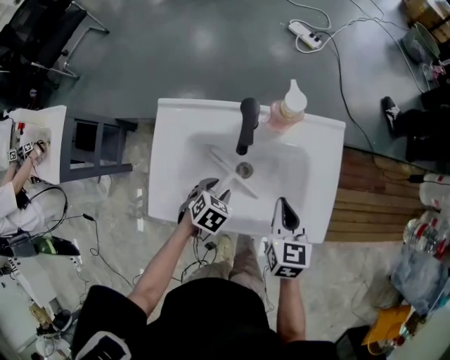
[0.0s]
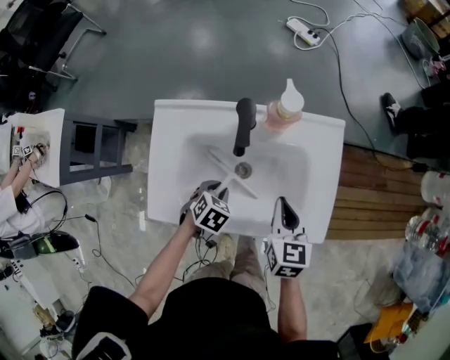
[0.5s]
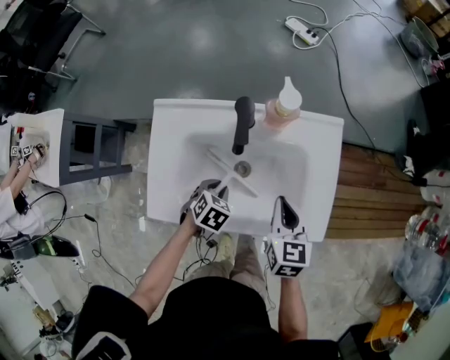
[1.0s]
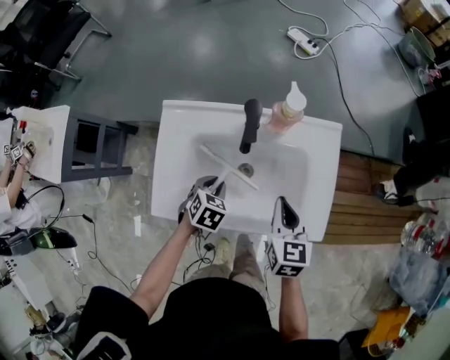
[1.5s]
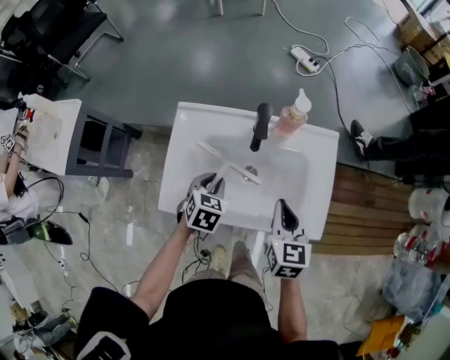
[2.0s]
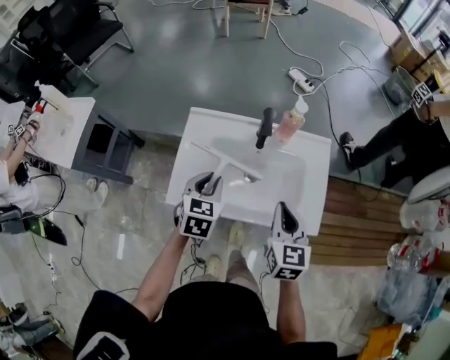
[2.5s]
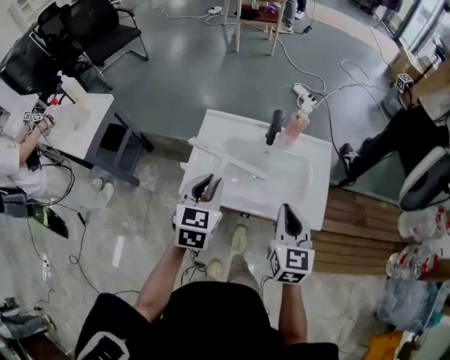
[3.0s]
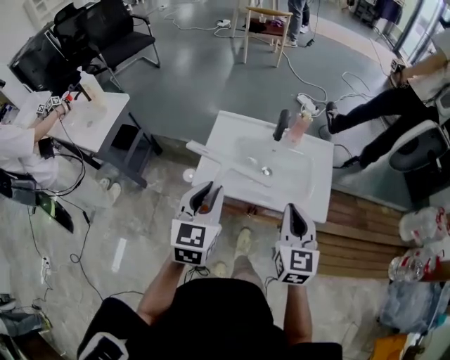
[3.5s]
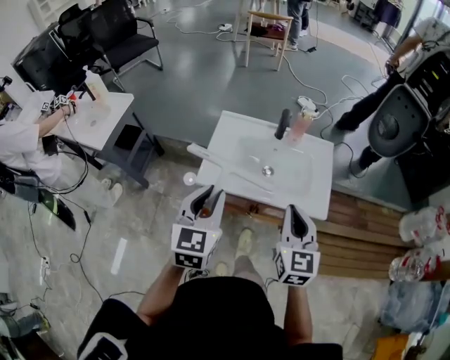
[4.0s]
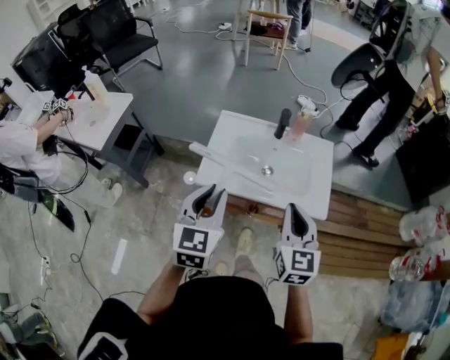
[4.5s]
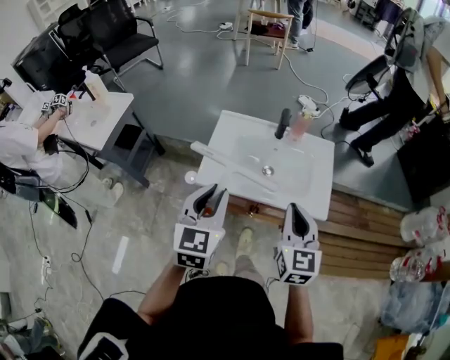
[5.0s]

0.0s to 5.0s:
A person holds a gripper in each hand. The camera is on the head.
0.0s to 2.5s: The left gripper moves upward, about 20 cm, changes its angle by about 40 degrees, and closes up; the right gripper shifts some 15 cm upward and backward.
2.5s to 5.0s: The two grippers go about 25 cm backward and upward. The left gripper changes its angle by roughly 20 degrees.

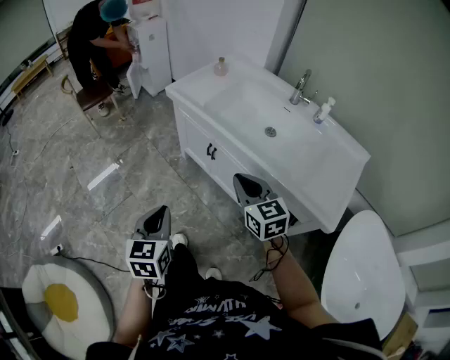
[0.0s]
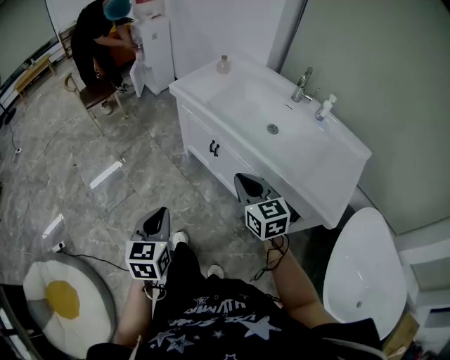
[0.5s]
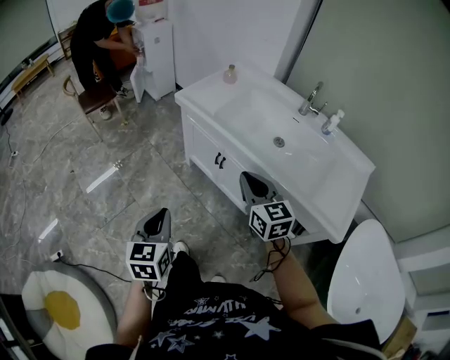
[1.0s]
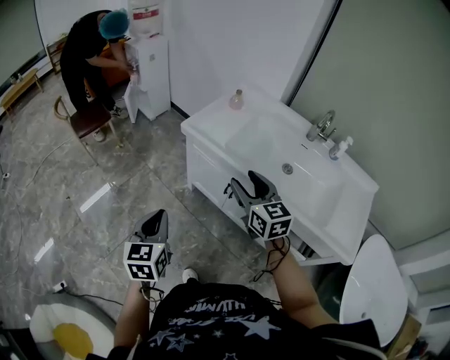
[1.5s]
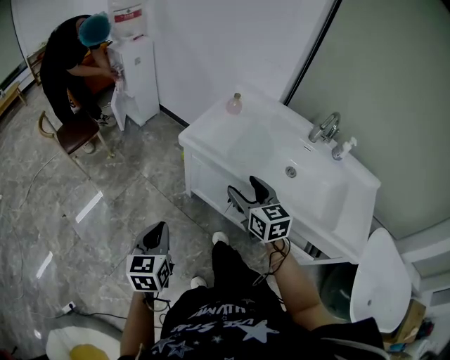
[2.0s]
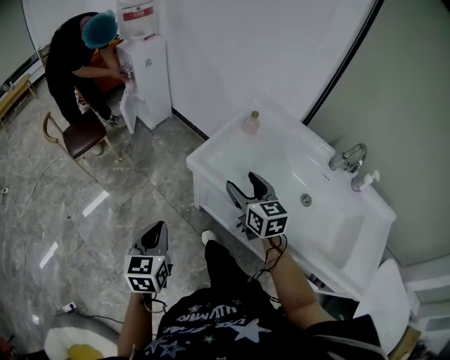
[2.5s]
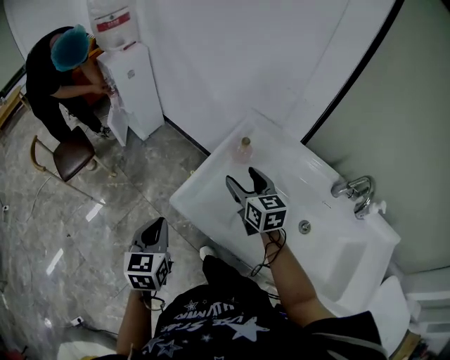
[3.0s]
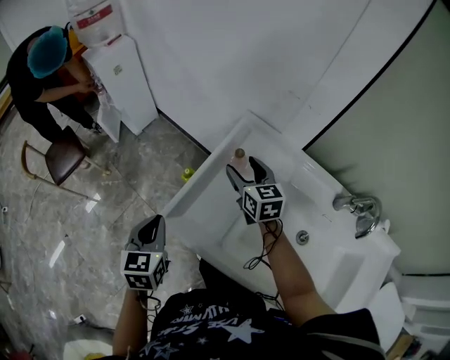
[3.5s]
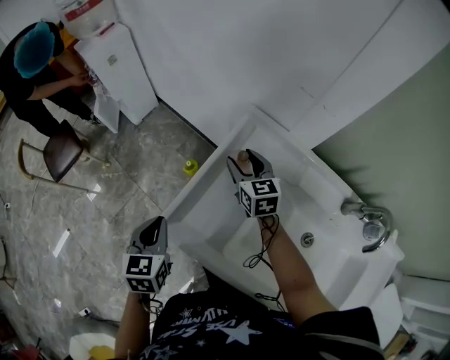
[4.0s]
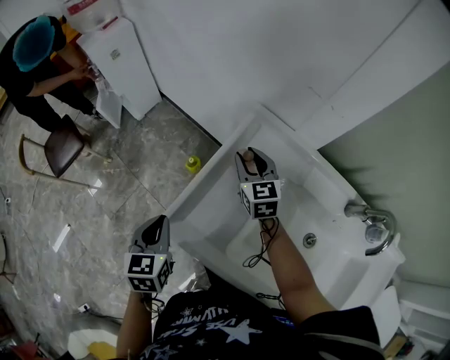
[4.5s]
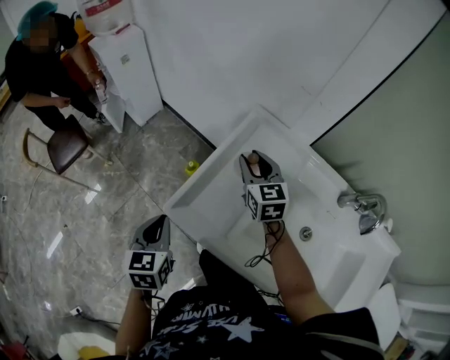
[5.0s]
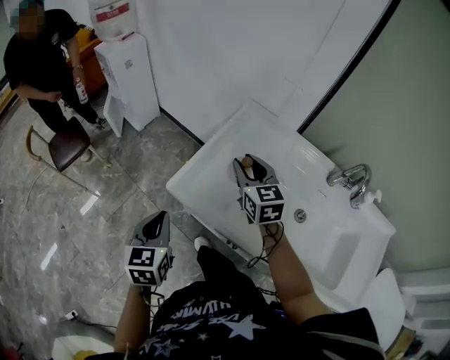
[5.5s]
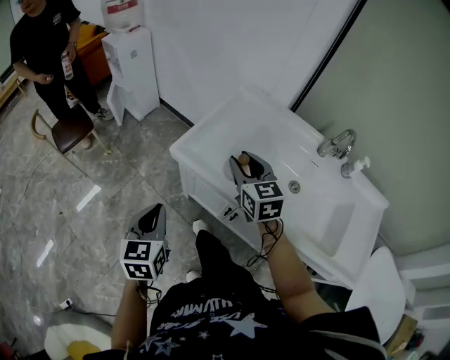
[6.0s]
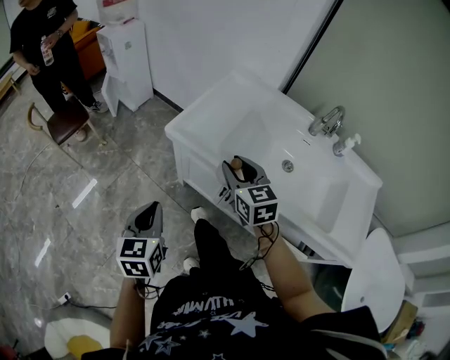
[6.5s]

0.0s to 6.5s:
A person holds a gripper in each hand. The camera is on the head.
0.0s to 2.0s: The grippers both shift forward and to the left by roughly 30 cm. The right gripper opens its fingers.
2.0s to 4.5s: The pair of grippers is taken forward, about 50 cm. The right gripper closes up.
4.5s to 6.5s: The grippers both shift backward by approximately 40 cm.

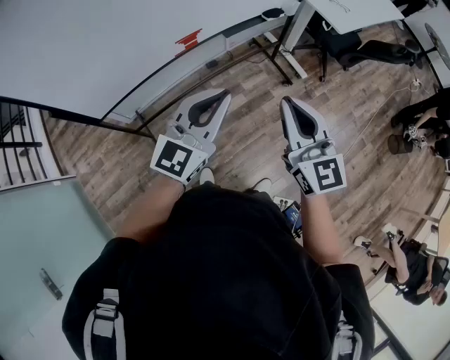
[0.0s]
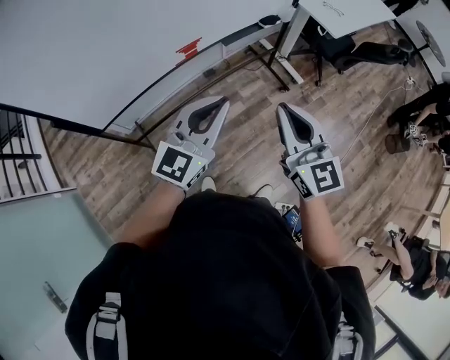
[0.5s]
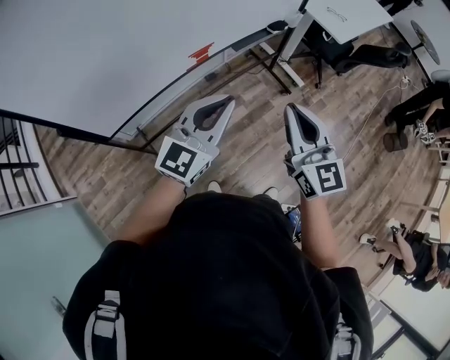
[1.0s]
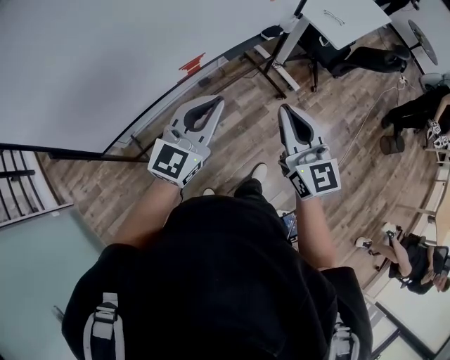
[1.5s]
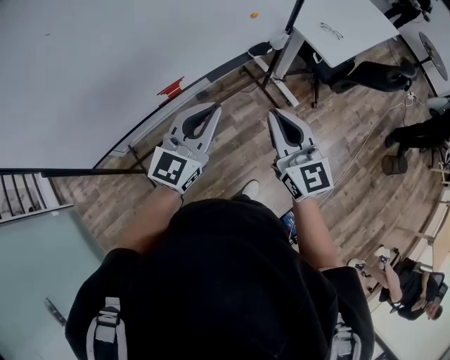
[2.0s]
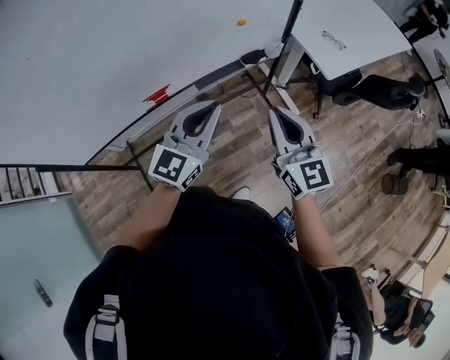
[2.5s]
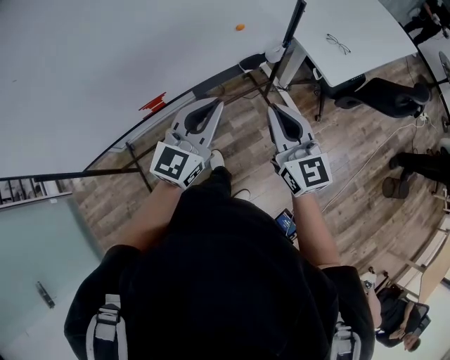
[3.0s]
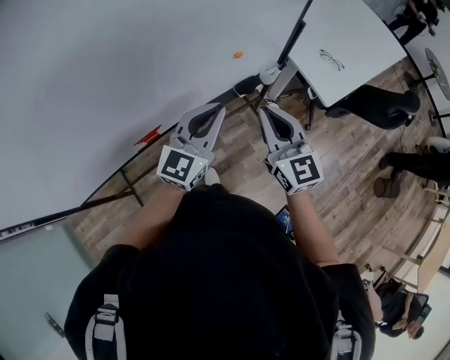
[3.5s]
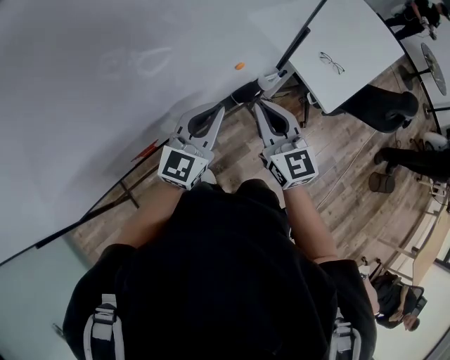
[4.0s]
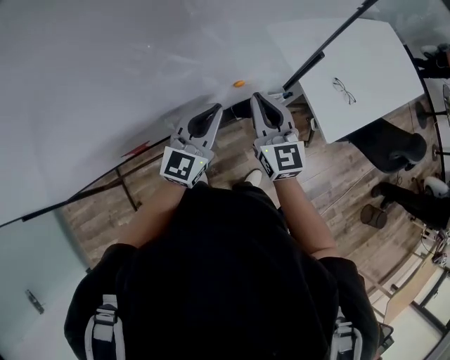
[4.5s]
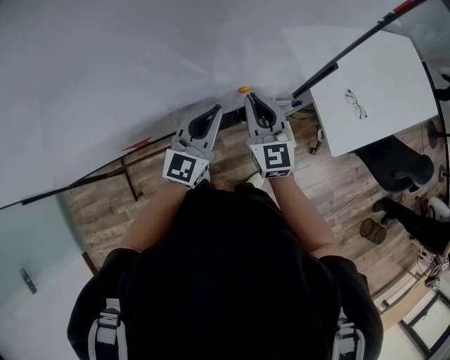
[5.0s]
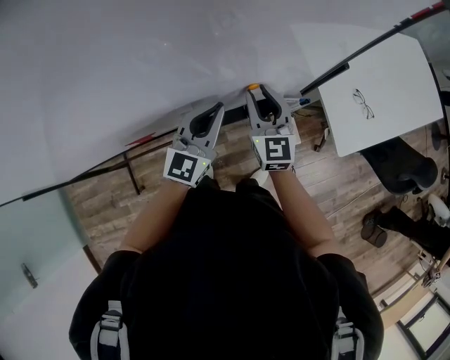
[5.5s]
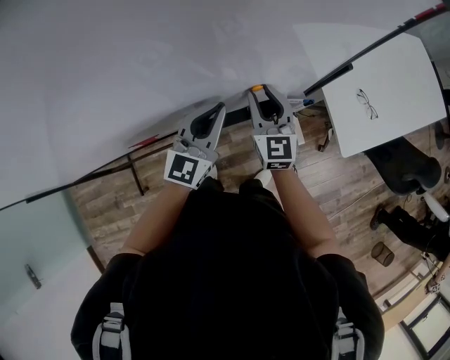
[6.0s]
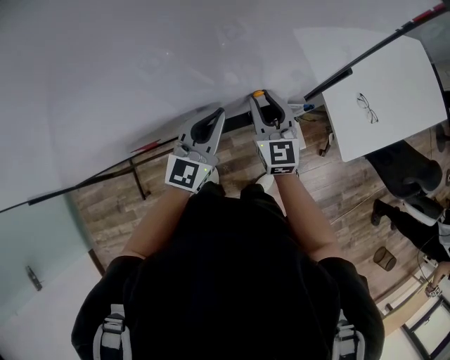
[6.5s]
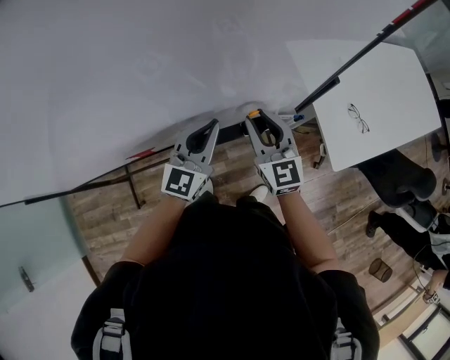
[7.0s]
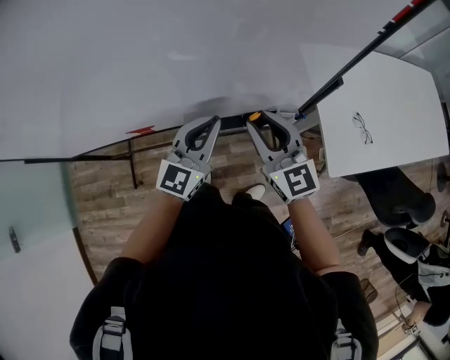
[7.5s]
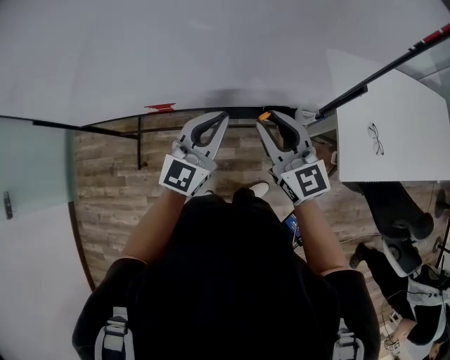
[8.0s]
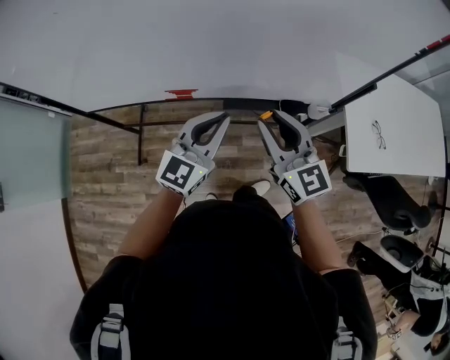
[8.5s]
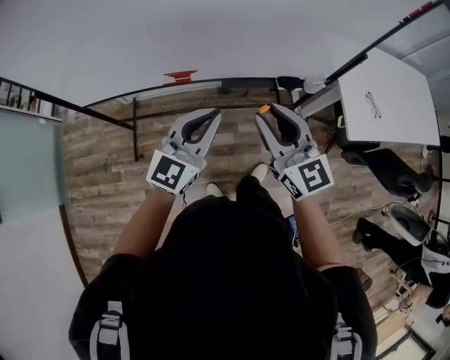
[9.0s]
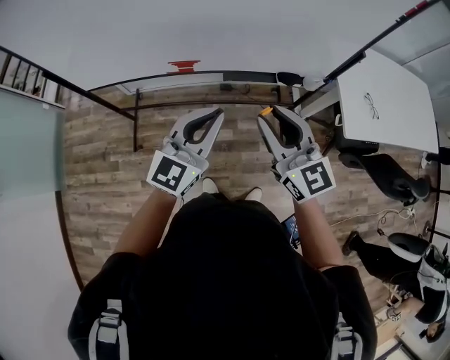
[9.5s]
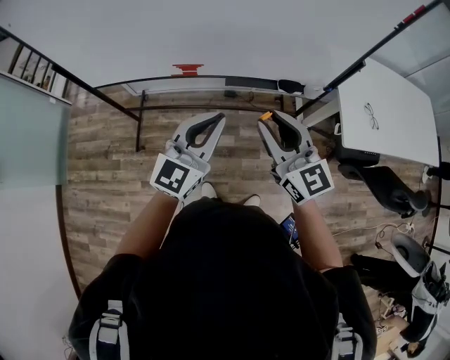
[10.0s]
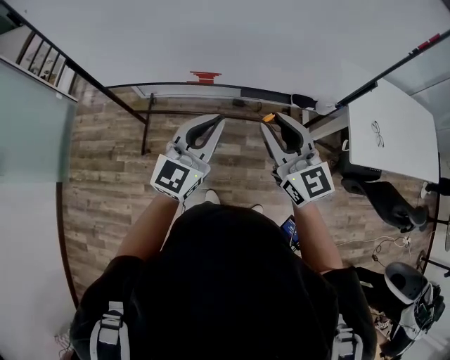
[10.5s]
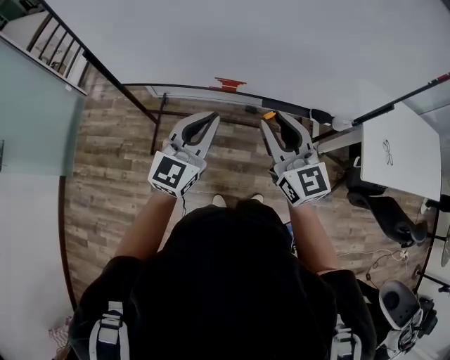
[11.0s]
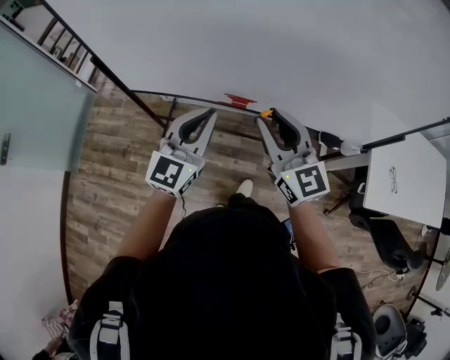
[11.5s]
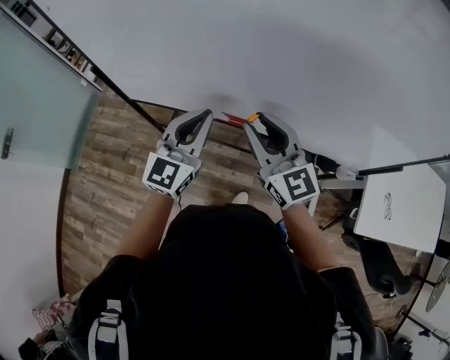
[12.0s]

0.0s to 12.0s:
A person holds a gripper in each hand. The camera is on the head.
0.0s to 2.0s: The two grippers go roughly 20 cm forward.
2.0s to 4.0s: The two grippers go some 30 cm forward.
4.0s to 6.0s: The right gripper moves forward and downward, roughly 15 cm, and opens its fingers. The left gripper is displaced forward by about 10 cm, and rotates approximately 20 degrees.
6.0s to 8.0s: The left gripper goes roughly 10 cm backward. Meanwhile the right gripper goes roughly 15 cm backward and upward, and turns by roughly 30 degrees.
8.0s to 10.0s: Both grippers travel together backward and to the left, about 25 cm.
10.0s to 12.0s: The two grippers go about 30 cm forward and to the left. The left gripper rotates approximately 20 degrees.

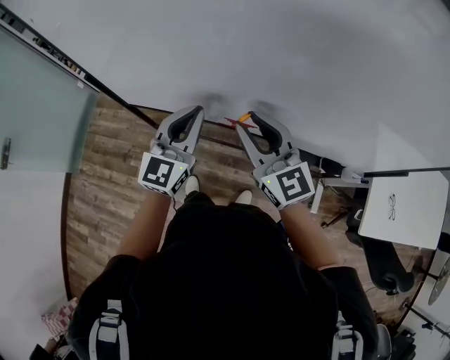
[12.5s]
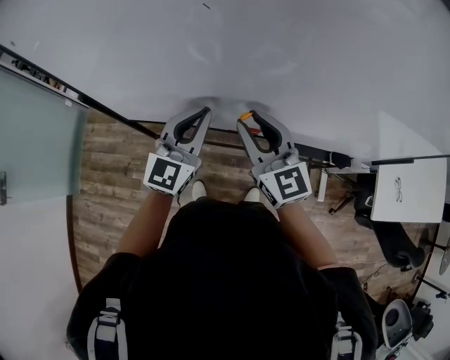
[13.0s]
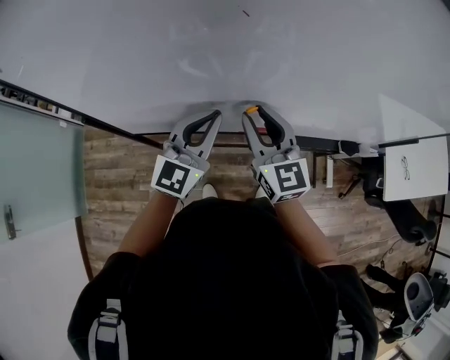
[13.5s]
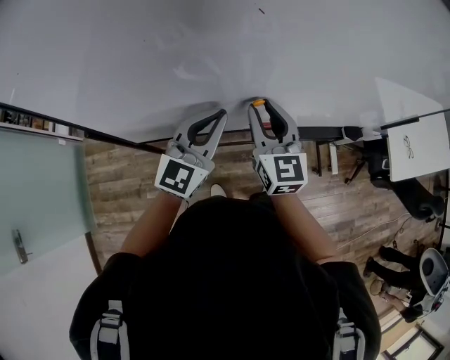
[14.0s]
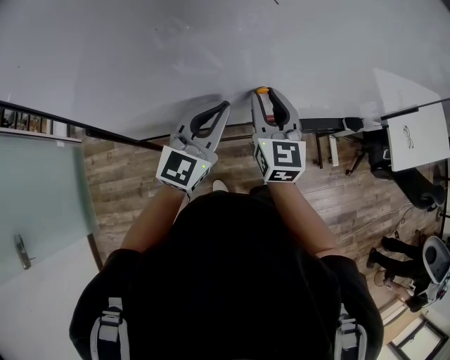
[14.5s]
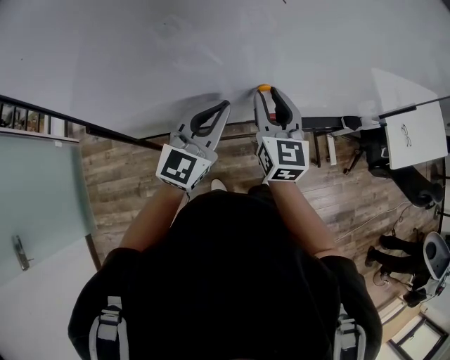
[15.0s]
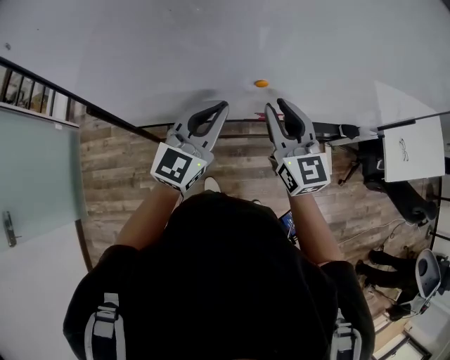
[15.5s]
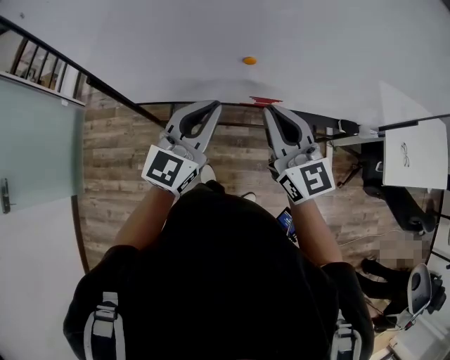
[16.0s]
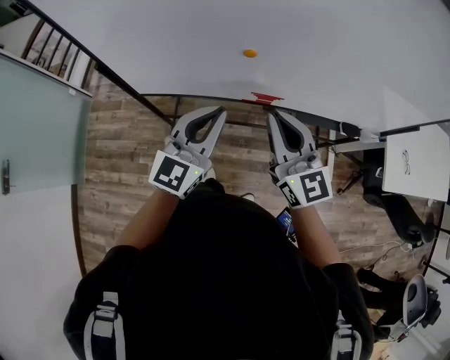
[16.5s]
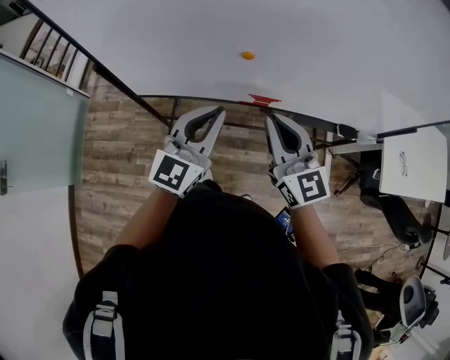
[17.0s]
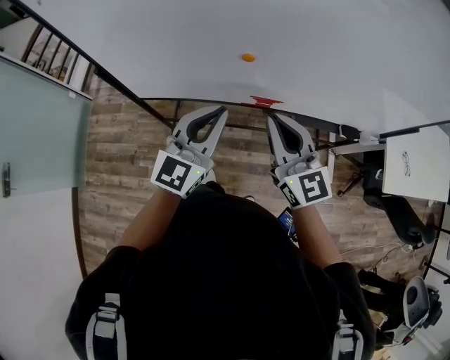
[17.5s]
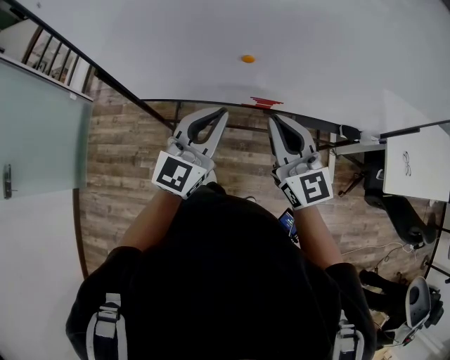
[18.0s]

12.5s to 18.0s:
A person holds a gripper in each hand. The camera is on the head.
12.5s to 14.5s: The right gripper shifts by about 15 cm, and turns by approximately 50 degrees. Meanwhile the left gripper moves about 10 cm, and changes its angle by some 30 degrees.
14.5s to 16.0s: The left gripper travels backward by about 10 cm. Meanwhile the right gripper heads backward and to the right, covering approximately 15 cm, changes its angle by roughly 30 degrees, and closes.
16.0s to 18.0s: There are only small adjustments of the grippers.
